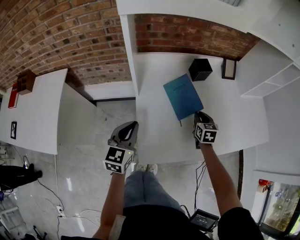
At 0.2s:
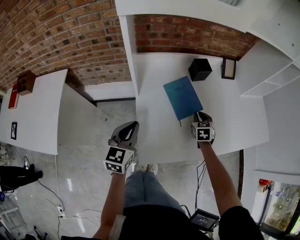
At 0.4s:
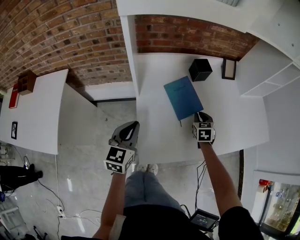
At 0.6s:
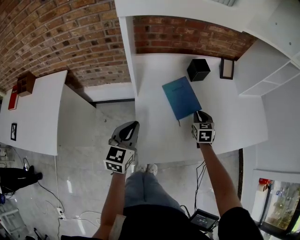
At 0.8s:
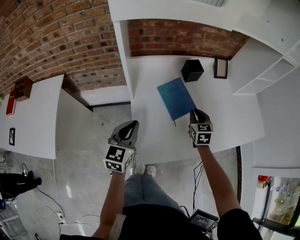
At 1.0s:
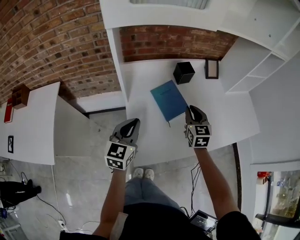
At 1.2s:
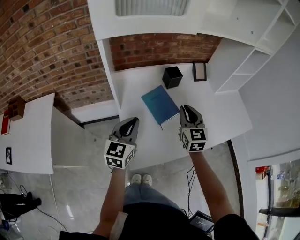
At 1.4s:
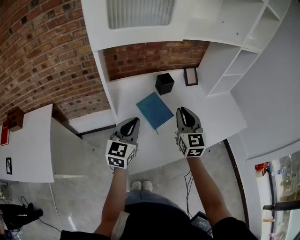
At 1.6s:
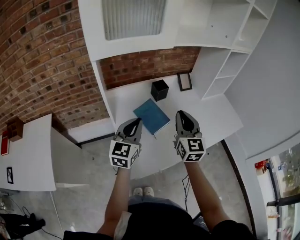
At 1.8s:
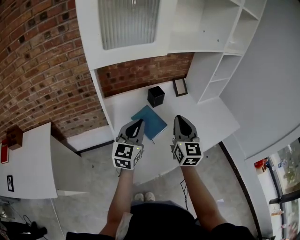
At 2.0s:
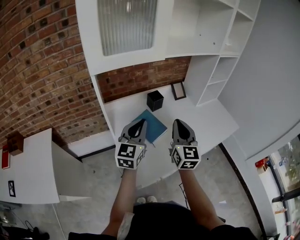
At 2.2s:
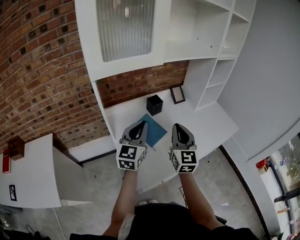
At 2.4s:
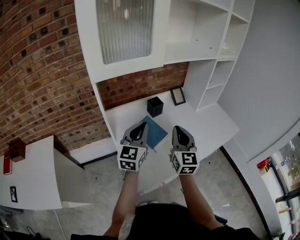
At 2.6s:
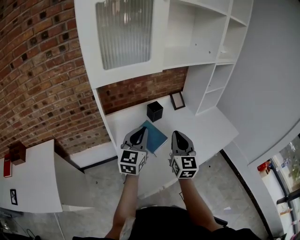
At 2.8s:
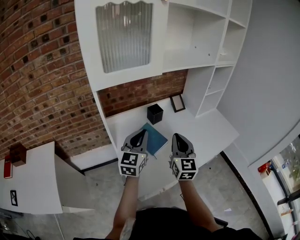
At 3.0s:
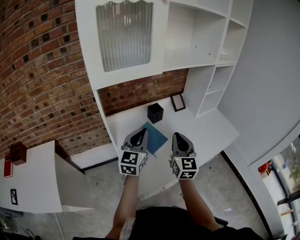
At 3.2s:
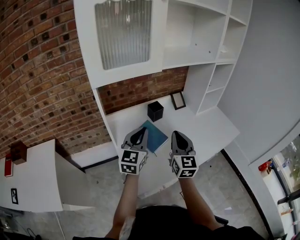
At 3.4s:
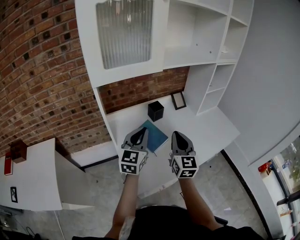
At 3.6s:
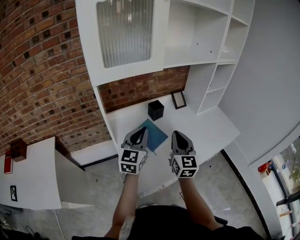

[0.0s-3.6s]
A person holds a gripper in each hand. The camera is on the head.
0.0s to 1.8s: The right gripper goes approximately 30 cm upward, and tips its fingers upward by some 40 degrees. The left gripper goes approximately 20 cm upward and to the right, and changes its angle by roughly 30 degrees.
1.8s to 3.6s: The grippers stay close to where they were, moving slightly.

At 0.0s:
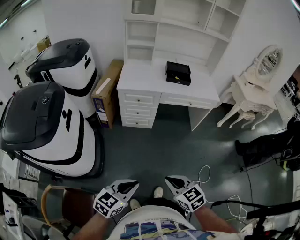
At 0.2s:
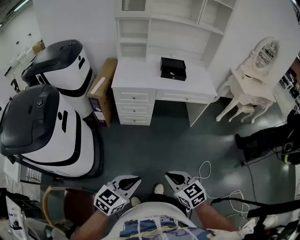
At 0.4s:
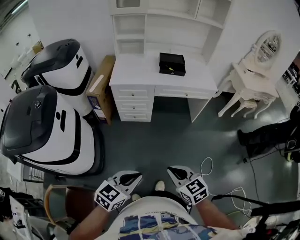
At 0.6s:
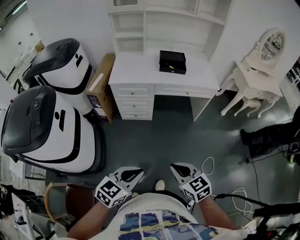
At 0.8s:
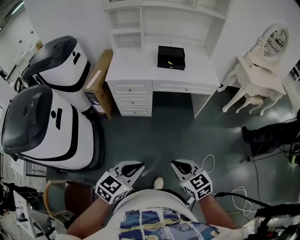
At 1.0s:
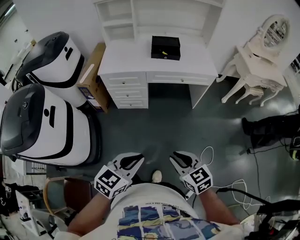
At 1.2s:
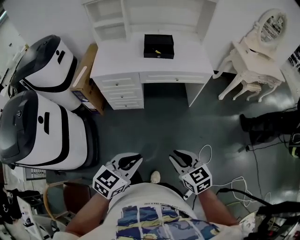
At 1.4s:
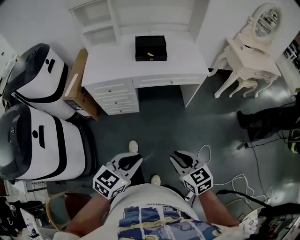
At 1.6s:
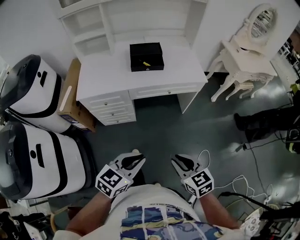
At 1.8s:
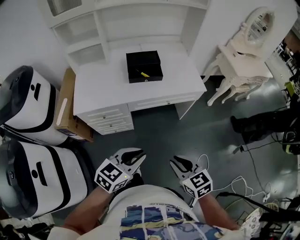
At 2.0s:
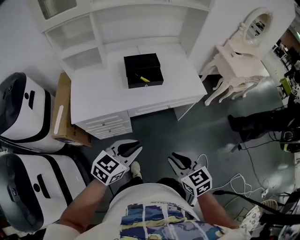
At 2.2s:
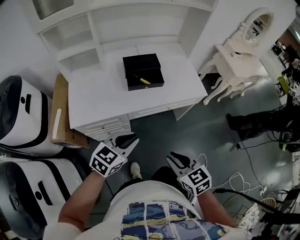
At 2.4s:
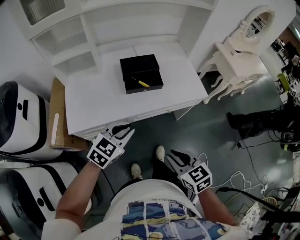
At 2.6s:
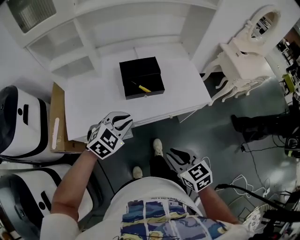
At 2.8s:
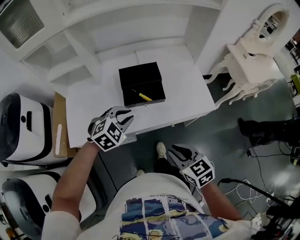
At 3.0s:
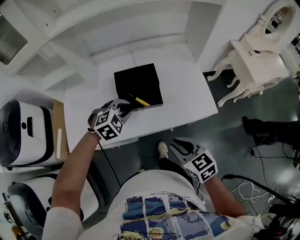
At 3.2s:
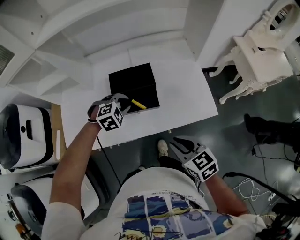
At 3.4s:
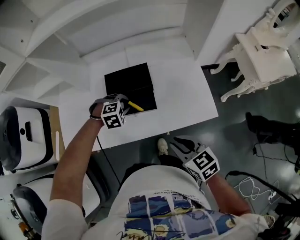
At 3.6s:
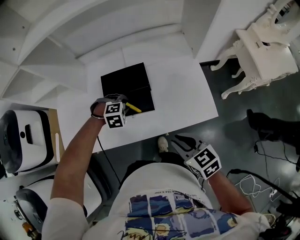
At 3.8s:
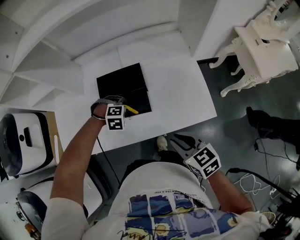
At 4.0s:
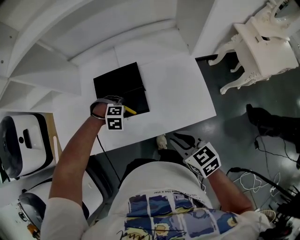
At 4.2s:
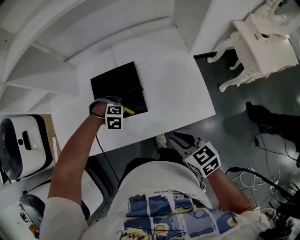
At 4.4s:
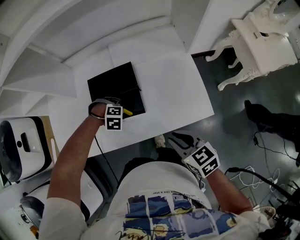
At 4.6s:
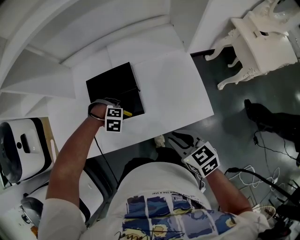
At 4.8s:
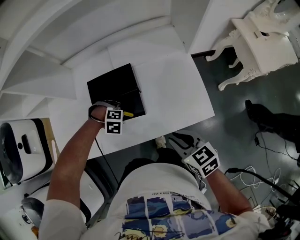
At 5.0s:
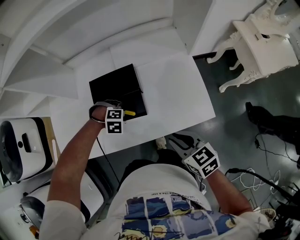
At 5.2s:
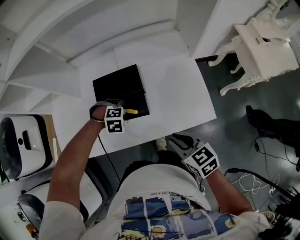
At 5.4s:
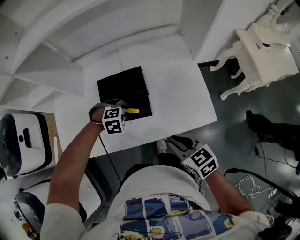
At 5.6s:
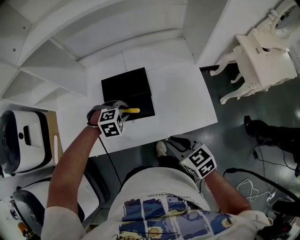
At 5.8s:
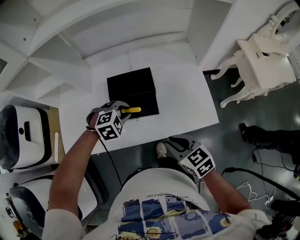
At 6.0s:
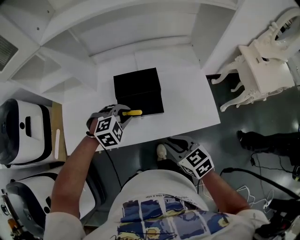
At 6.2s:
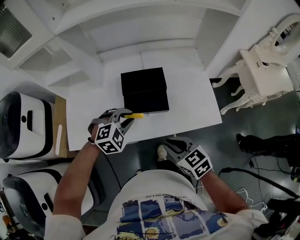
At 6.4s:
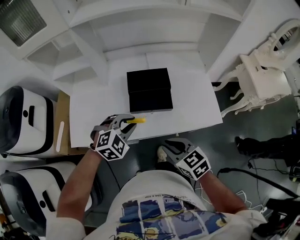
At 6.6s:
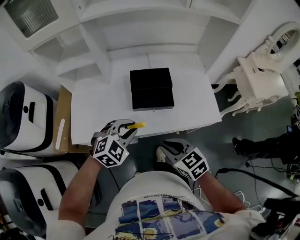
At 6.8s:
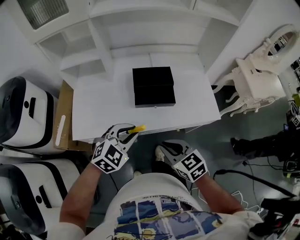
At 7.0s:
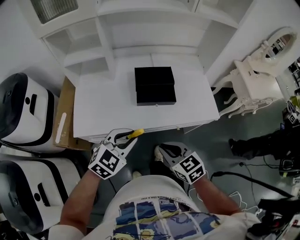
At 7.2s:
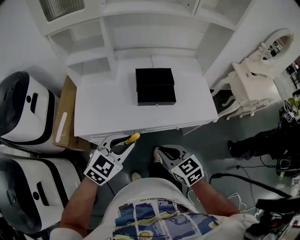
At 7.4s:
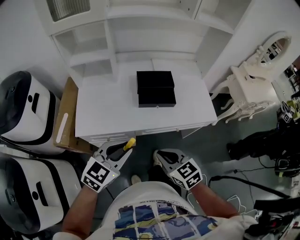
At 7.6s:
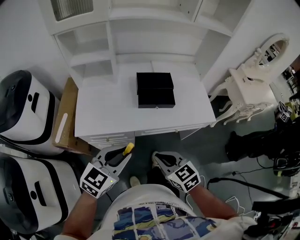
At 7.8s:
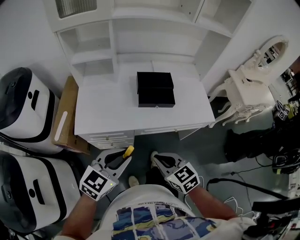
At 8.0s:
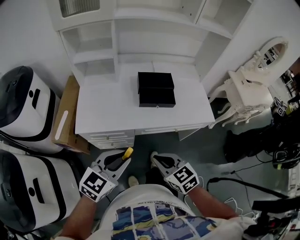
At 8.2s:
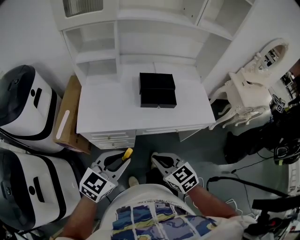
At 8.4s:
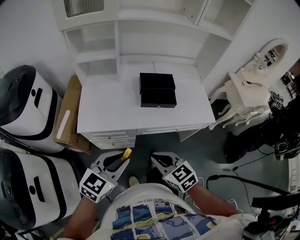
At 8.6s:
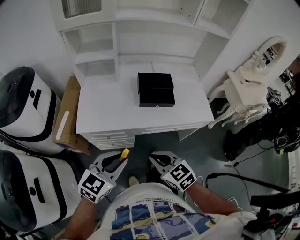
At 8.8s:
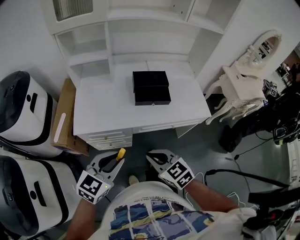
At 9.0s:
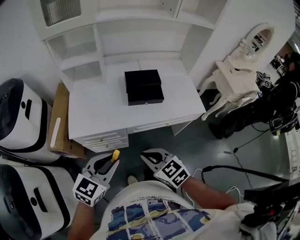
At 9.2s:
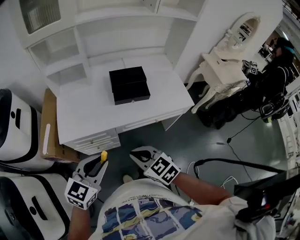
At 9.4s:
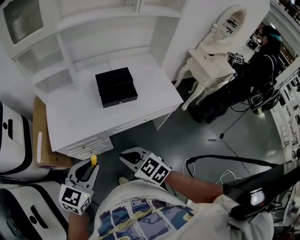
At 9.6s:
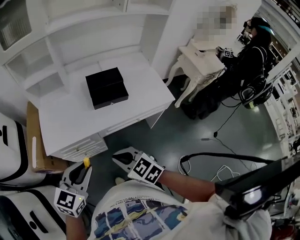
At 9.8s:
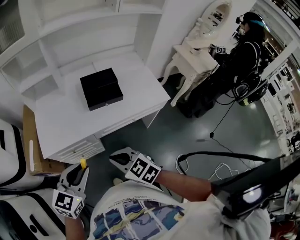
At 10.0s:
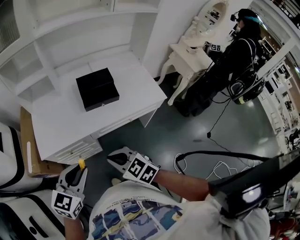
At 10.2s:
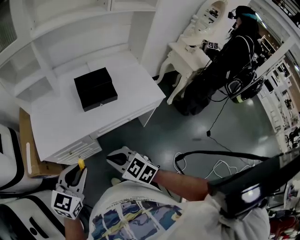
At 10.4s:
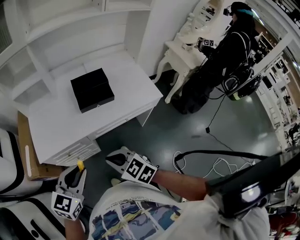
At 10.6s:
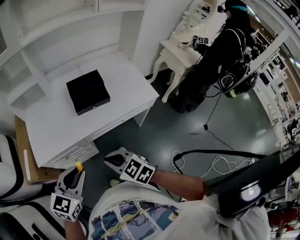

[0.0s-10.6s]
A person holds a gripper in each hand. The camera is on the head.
0.0s to 1.6s: Both grippers travel together forward and to the right, some 30 cm.
1.6s to 3.0s: Both grippers travel together forward, roughly 40 cm. The left gripper rolls clockwise, seen from behind, by roughly 40 degrees.
3.0s to 4.6s: The left gripper shifts roughly 20 cm downward, and tips its fingers downward by roughly 30 degrees, while the right gripper shifts by about 15 cm.
4.6s to 6.0s: The left gripper goes about 15 cm upward, and angles its fingers upward, by approximately 30 degrees. The right gripper moves roughly 10 cm.
6.0s to 7.6s: The left gripper goes some 35 cm backward, upward and to the left, and points its fingers roughly 40 degrees further upward. Meanwhile the right gripper goes approximately 20 cm backward and to the left.
7.6s to 9.0s: The left gripper moves about 5 cm.
9.0s to 10.6s: There are only small adjustments of the grippers.

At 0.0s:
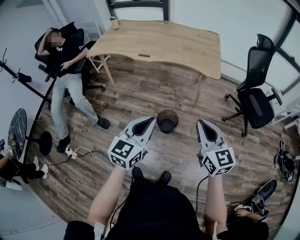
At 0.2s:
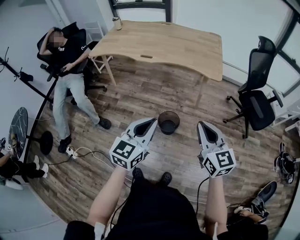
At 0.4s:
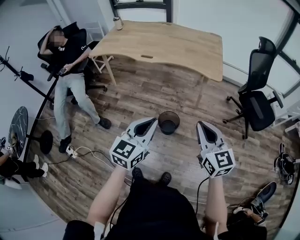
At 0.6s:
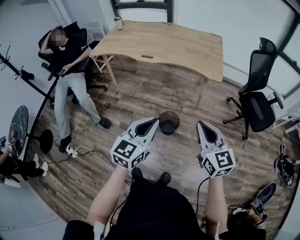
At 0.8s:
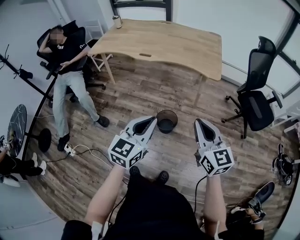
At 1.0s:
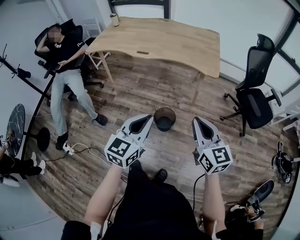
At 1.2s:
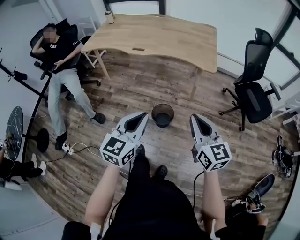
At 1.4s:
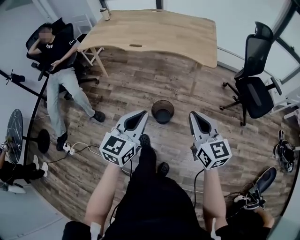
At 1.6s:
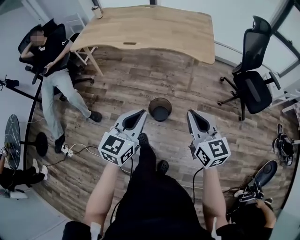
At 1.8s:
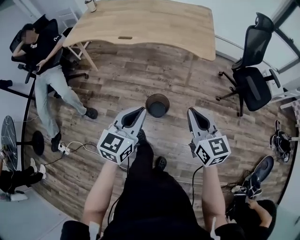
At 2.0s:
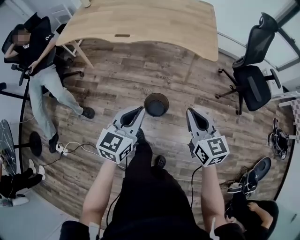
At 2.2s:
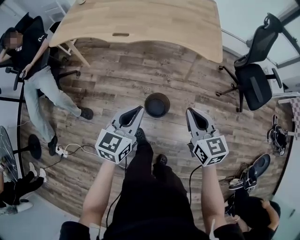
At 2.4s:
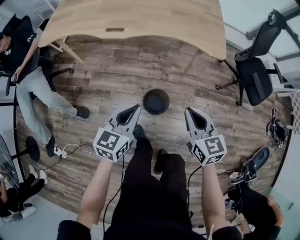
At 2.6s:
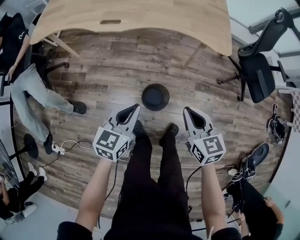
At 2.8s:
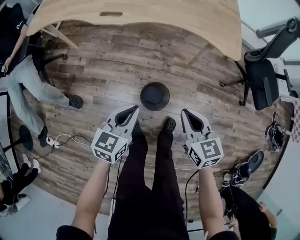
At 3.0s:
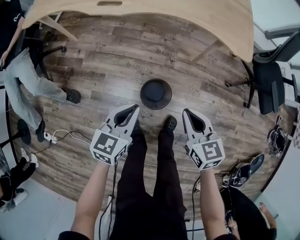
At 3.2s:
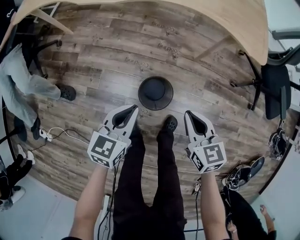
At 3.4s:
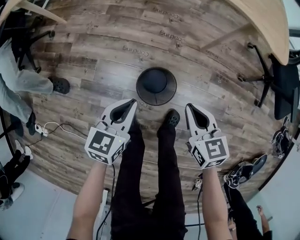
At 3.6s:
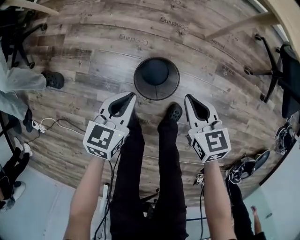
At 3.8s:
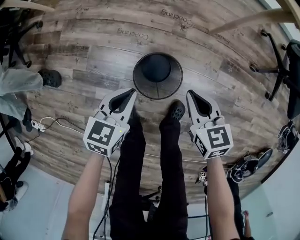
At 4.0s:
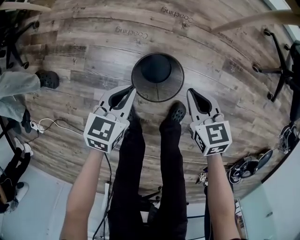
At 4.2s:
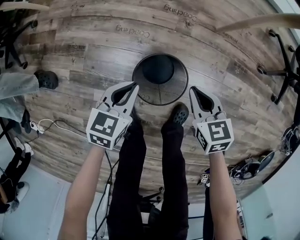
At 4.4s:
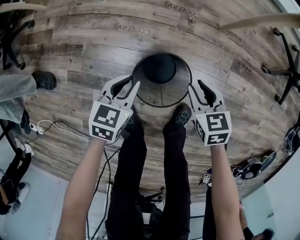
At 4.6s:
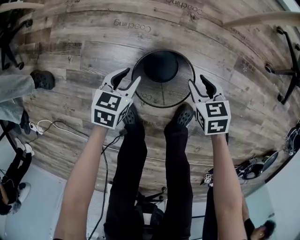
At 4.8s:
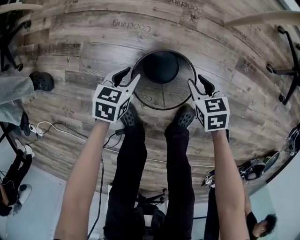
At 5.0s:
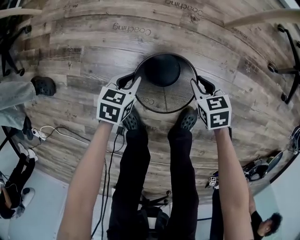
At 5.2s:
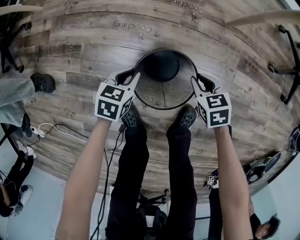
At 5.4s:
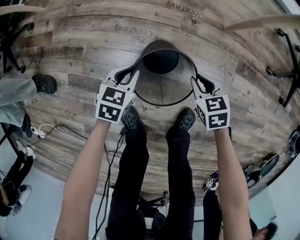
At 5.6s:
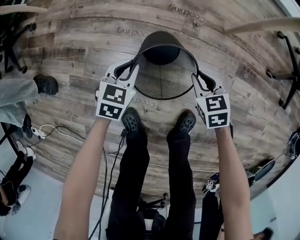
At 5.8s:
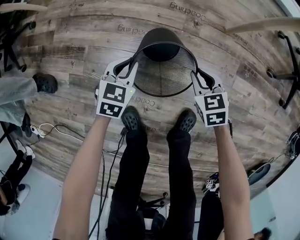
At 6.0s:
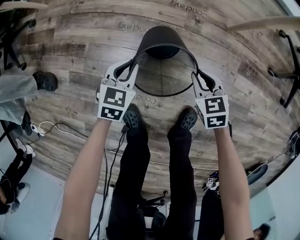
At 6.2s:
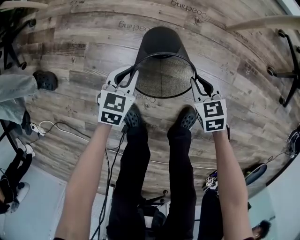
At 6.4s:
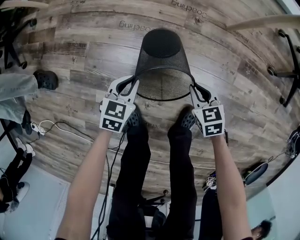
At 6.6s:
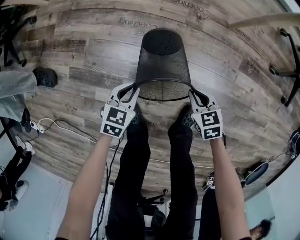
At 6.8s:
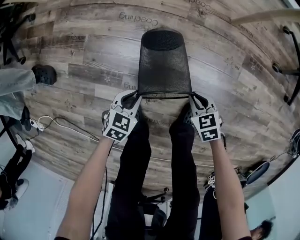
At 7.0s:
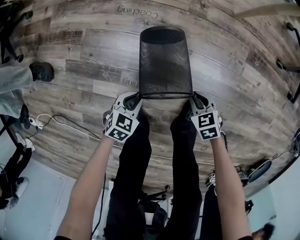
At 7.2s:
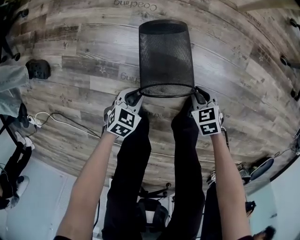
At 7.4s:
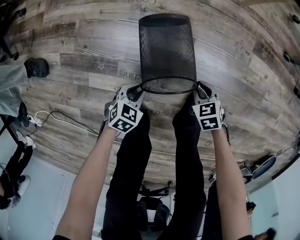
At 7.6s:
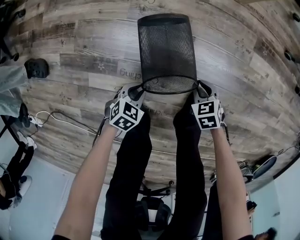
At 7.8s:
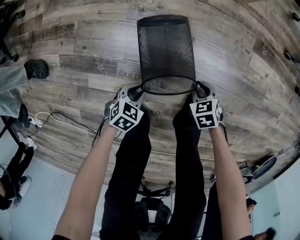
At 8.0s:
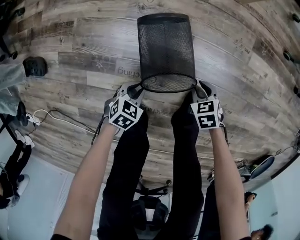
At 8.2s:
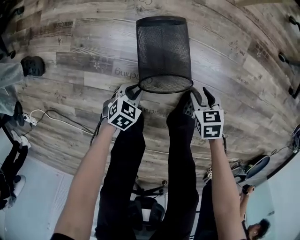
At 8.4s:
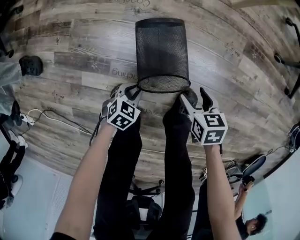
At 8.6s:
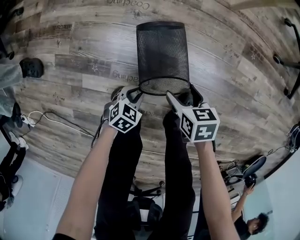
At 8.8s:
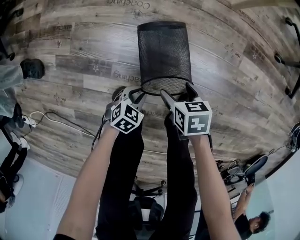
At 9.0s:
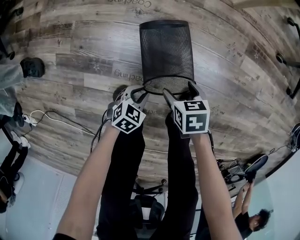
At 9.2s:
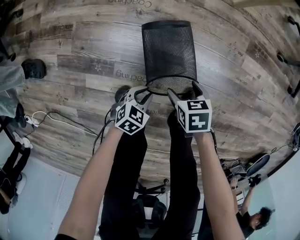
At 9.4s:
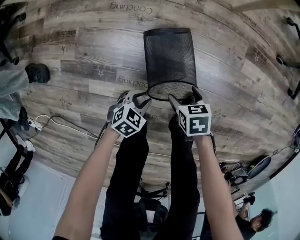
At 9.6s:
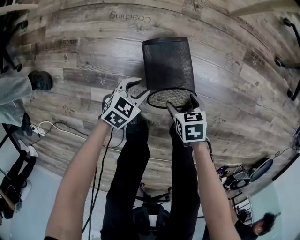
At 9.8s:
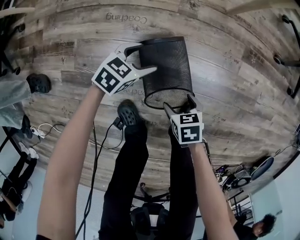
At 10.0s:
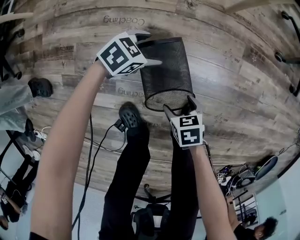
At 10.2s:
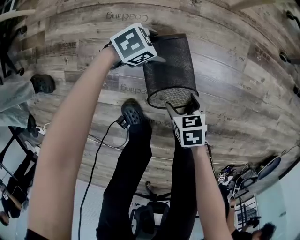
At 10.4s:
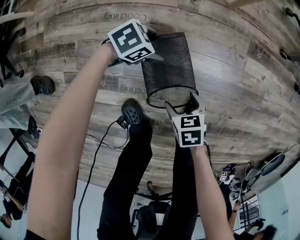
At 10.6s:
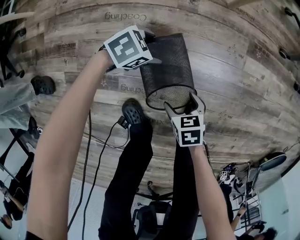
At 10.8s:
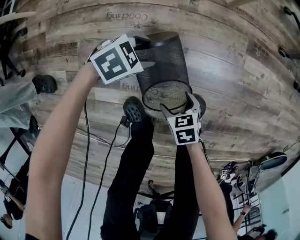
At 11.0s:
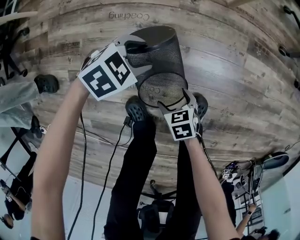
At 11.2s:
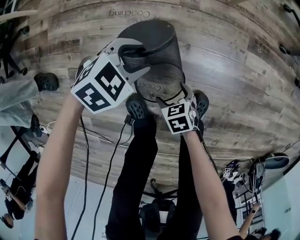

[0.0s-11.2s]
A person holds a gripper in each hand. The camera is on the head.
0.0s to 1.6s: The grippers move only a little.
1.6s to 3.2s: Both grippers travel together downward and forward, about 40 cm. The left gripper changes its angle by about 20 degrees, while the right gripper rotates some 30 degrees.
3.2s to 4.8s: Both grippers travel together downward, about 40 cm. The right gripper turns by about 30 degrees. Meanwhile the left gripper turns by roughly 30 degrees.
4.8s to 6.4s: The left gripper travels forward and back again, about 5 cm each way.
6.4s to 8.0s: The left gripper ends up some 20 cm from where it was, and swivels roughly 20 degrees, while the right gripper shifts by some 20 cm.
8.0s to 9.6s: The left gripper ends up some 10 cm from where it was. The right gripper changes place by about 10 cm, rotates about 20 degrees, and opens.
9.6s to 11.2s: The left gripper is displaced upward by about 10 cm, changes its angle by about 30 degrees, and opens and closes again. Meanwhile the right gripper changes place by some 5 cm.
